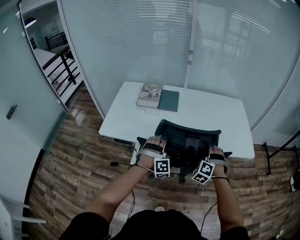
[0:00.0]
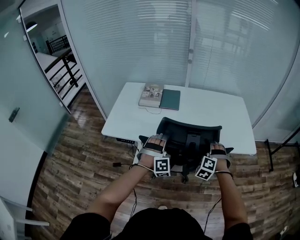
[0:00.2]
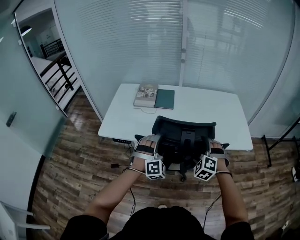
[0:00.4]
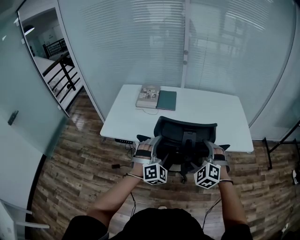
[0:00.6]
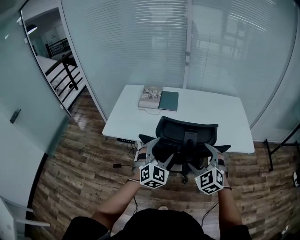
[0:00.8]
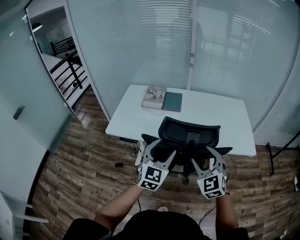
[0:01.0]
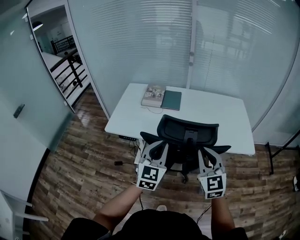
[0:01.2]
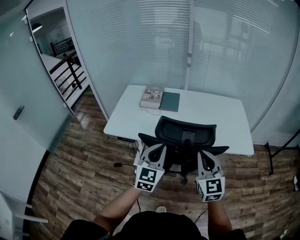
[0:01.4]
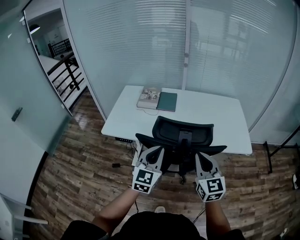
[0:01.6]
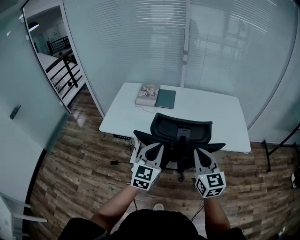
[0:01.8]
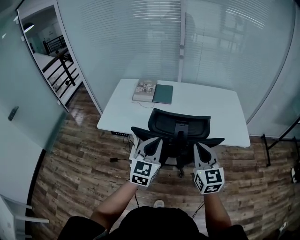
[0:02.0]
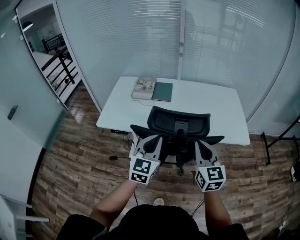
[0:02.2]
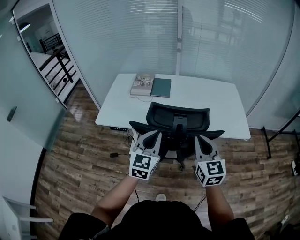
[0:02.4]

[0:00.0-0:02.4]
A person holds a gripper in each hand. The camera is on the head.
0:00.0 to 0:01.2: The grippers both shift upward and backward by roughly 20 cm. The right gripper points its fingers approximately 40 degrees further upward, and closes up. The left gripper twists approximately 70 degrees counterclockwise, seen from behind, and closes.
0:01.2 to 0:02.4: The grippers stay close to where they were, moving slightly.

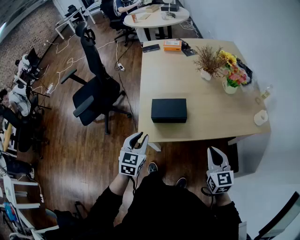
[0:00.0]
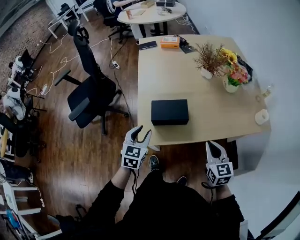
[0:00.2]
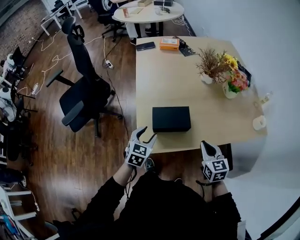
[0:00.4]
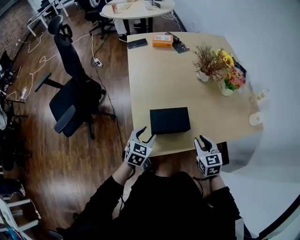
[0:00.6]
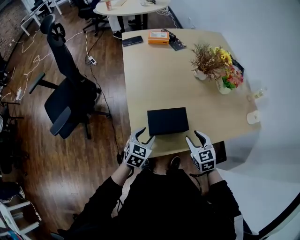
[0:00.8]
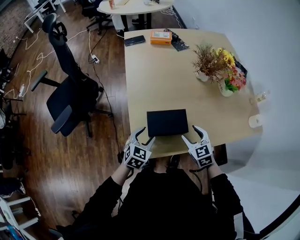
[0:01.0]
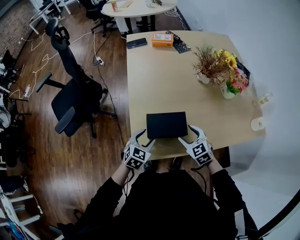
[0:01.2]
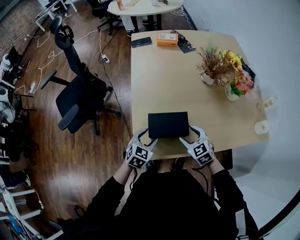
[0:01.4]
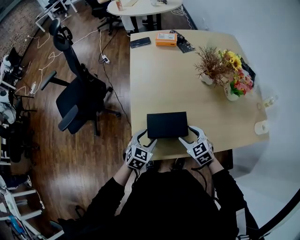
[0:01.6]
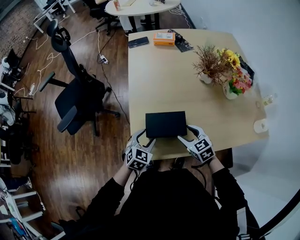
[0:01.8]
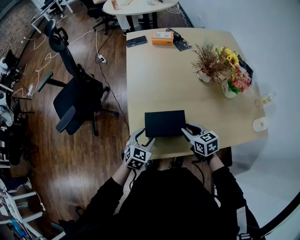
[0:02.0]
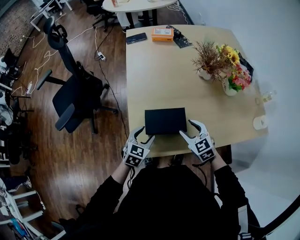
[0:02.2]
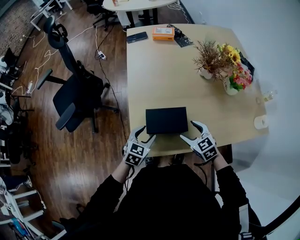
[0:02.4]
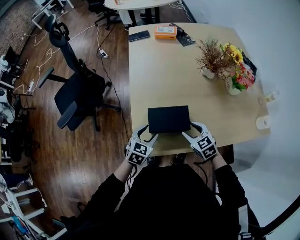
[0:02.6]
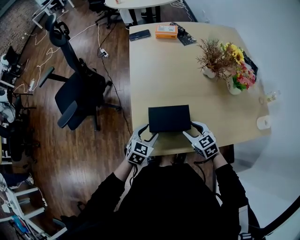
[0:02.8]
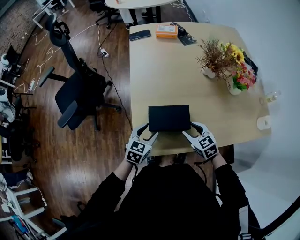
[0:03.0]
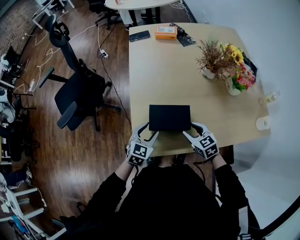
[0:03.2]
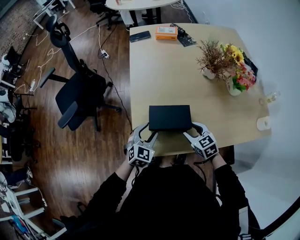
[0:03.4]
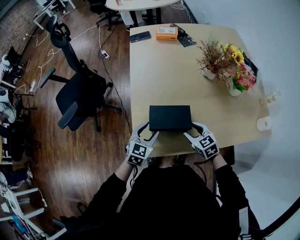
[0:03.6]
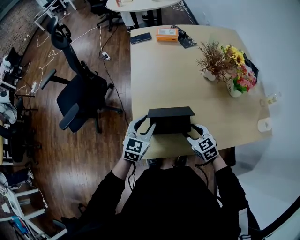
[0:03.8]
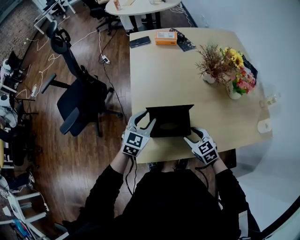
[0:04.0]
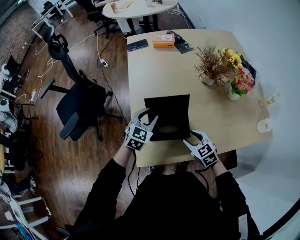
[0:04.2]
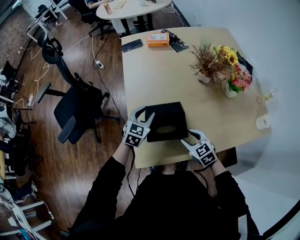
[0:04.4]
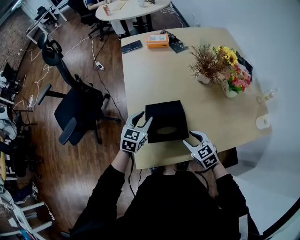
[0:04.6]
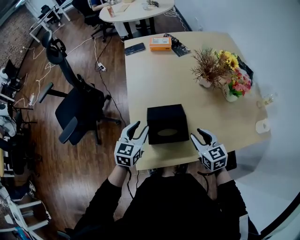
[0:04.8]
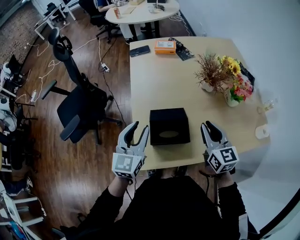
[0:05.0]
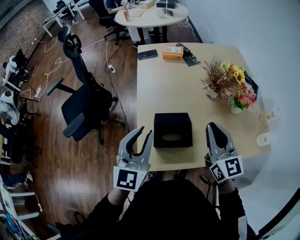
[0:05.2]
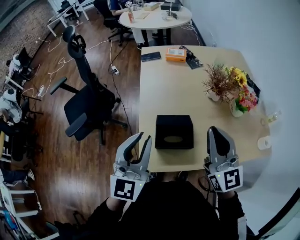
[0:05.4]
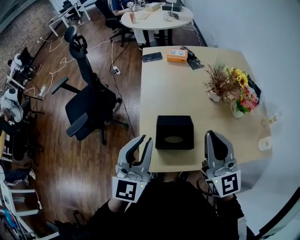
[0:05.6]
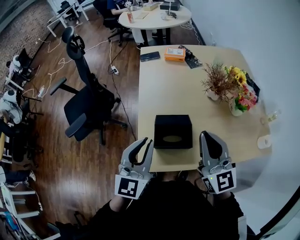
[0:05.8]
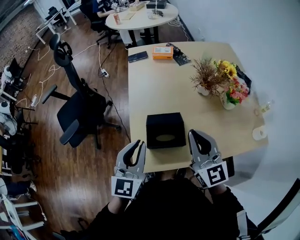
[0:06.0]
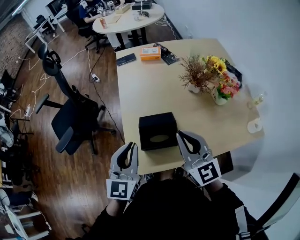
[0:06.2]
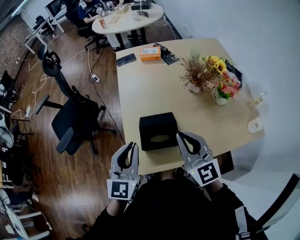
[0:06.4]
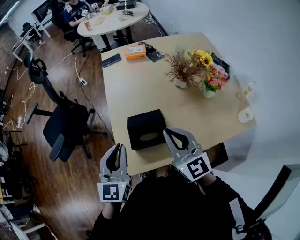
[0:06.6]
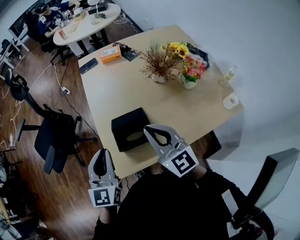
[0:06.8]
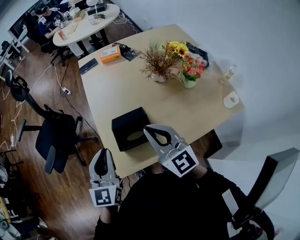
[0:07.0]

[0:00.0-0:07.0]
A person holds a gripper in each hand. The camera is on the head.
0:00.0 to 0:01.4: The right gripper heads forward, downward and to the left, covering some 30 cm, changes its angle by roughly 30 degrees, and opens; the left gripper heads forward and downward, covering some 20 cm, swivels approximately 20 degrees, and opens its fingers.
0:01.4 to 0:02.8: The right gripper closes, then opens again.
0:02.8 to 0:04.2: The left gripper goes roughly 15 cm forward and upward.
0:04.2 to 0:05.6: The right gripper shifts about 35 cm upward, tips its fingers upward by approximately 50 degrees, and closes. Meanwhile the left gripper shifts approximately 25 cm upward and backward, tips its fingers upward by about 30 degrees, and closes.
0:05.6 to 0:07.0: The grippers both shift downward by some 10 cm.

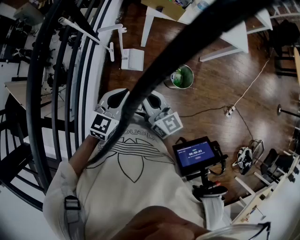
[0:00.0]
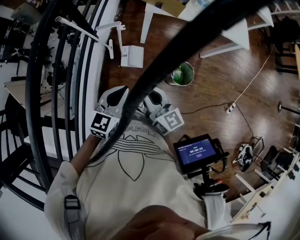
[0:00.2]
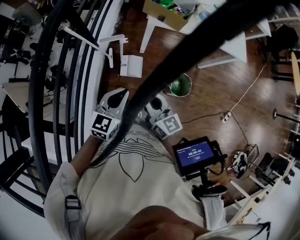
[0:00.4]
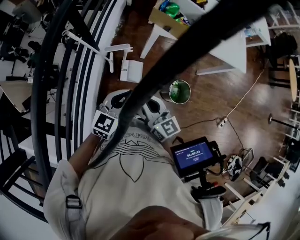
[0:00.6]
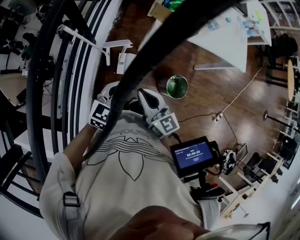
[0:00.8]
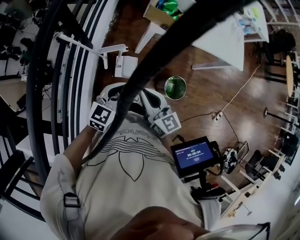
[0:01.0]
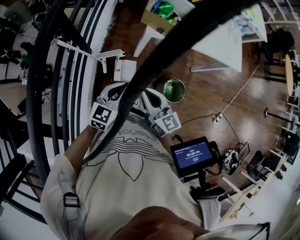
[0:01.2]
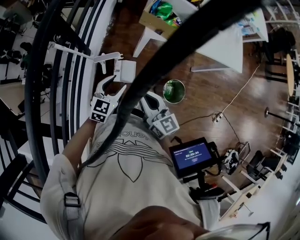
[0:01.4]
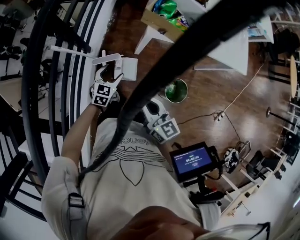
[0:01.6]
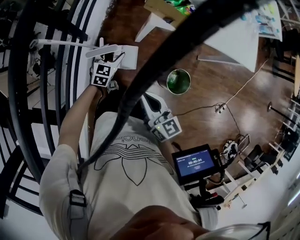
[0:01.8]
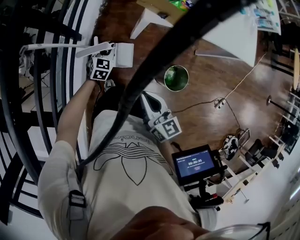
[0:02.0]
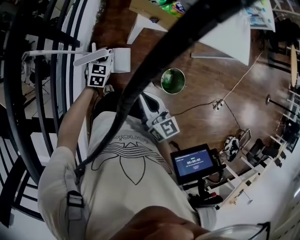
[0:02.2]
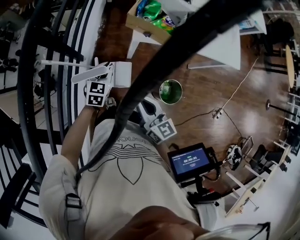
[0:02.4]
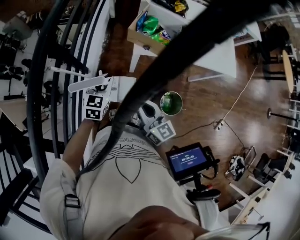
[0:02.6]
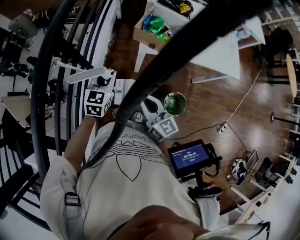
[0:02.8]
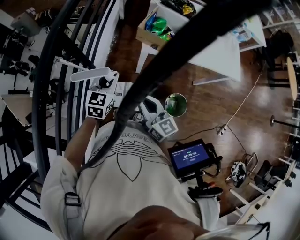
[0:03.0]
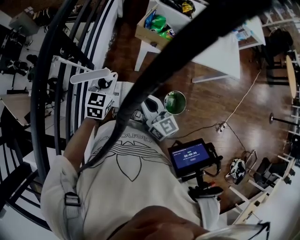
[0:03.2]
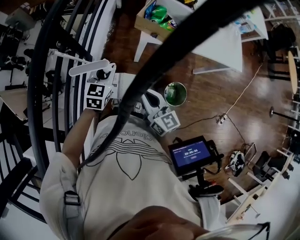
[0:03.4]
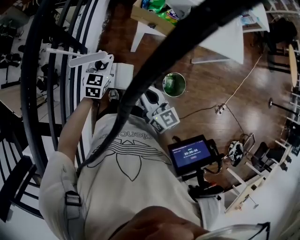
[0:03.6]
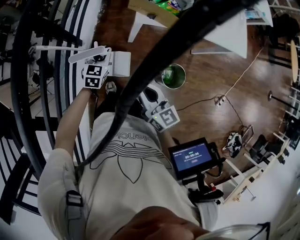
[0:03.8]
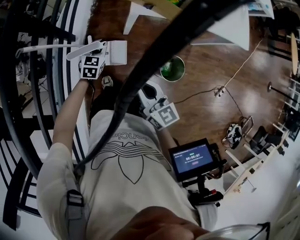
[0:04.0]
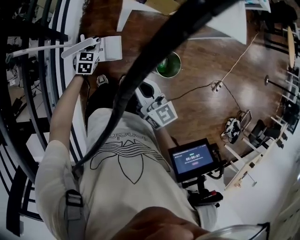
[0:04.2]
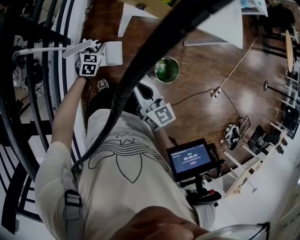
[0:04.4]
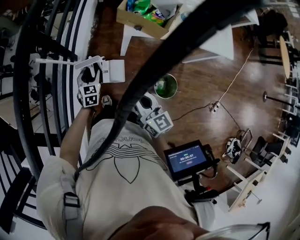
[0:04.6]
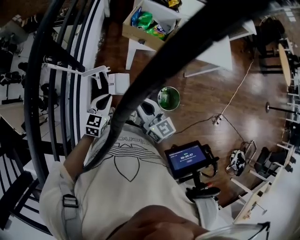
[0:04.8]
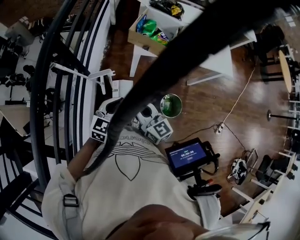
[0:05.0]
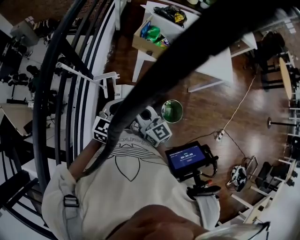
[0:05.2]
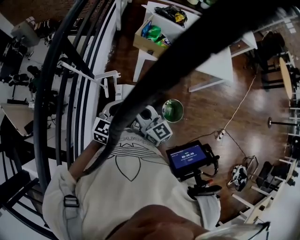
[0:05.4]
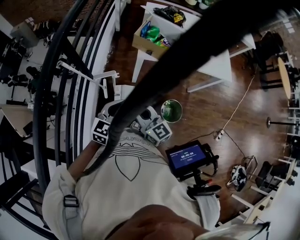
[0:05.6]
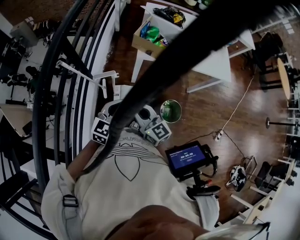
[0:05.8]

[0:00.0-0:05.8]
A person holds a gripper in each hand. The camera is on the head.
0:00.0 to 0:01.4: The right gripper shifts approximately 15 cm forward, while the left gripper goes some 25 cm forward and downward, and opens its fingers.
0:01.4 to 0:02.8: The left gripper is displaced forward by approximately 10 cm, goes downward and returns, approximately 15 cm each way, and closes its fingers, while the right gripper moves about 10 cm downward and comes back.
0:02.8 to 0:04.4: The left gripper travels downward by roughly 25 cm, and opens up, while the right gripper goes roughly 5 cm downward.
0:04.4 to 0:05.8: The right gripper goes up and down, about 5 cm each way, reversing 2 times. Meanwhile the left gripper travels upward and backward by roughly 30 cm, turns by some 30 degrees, and closes.

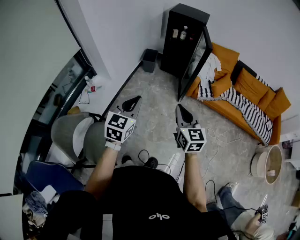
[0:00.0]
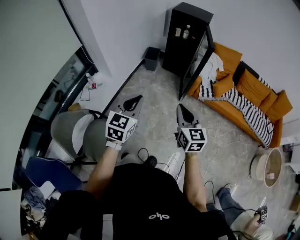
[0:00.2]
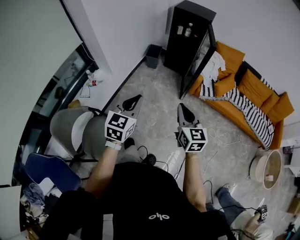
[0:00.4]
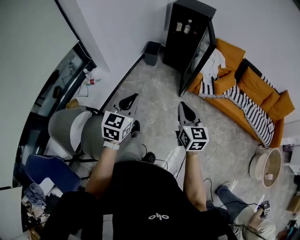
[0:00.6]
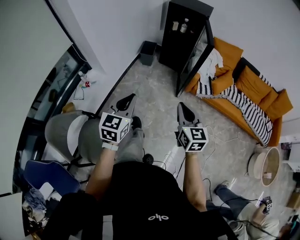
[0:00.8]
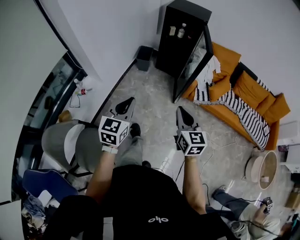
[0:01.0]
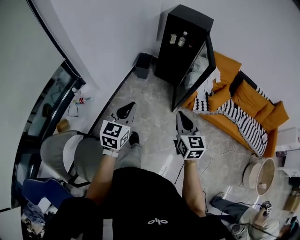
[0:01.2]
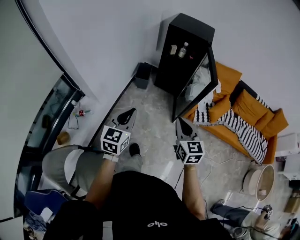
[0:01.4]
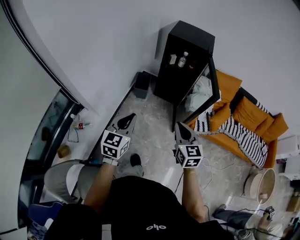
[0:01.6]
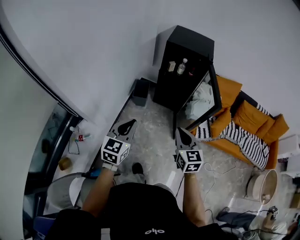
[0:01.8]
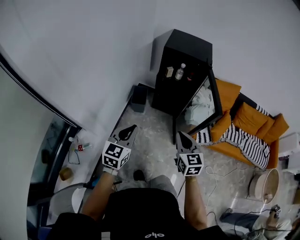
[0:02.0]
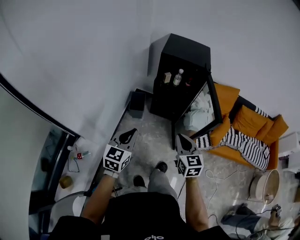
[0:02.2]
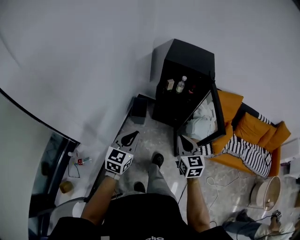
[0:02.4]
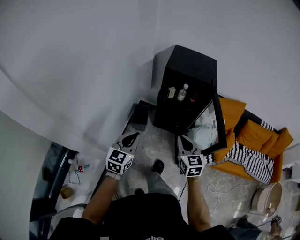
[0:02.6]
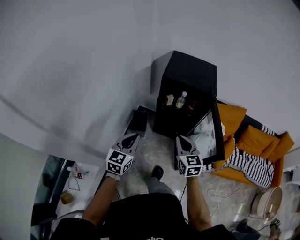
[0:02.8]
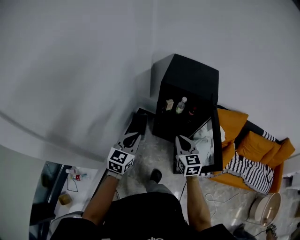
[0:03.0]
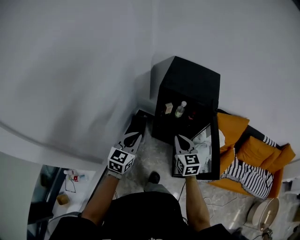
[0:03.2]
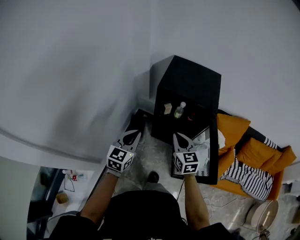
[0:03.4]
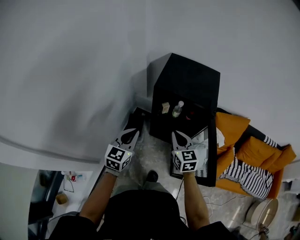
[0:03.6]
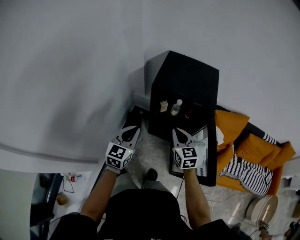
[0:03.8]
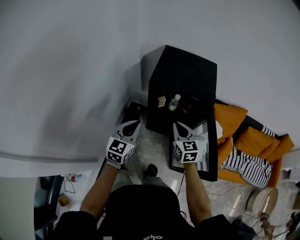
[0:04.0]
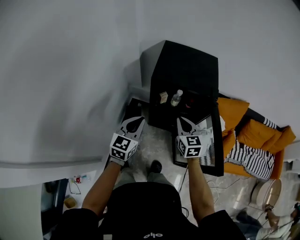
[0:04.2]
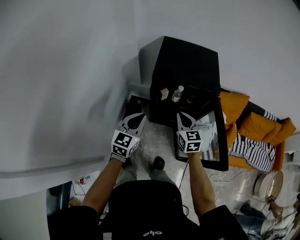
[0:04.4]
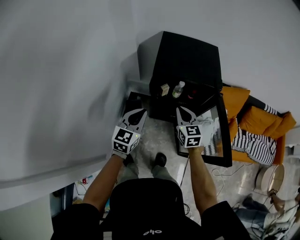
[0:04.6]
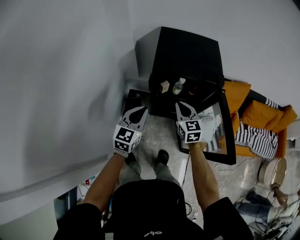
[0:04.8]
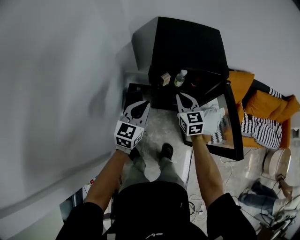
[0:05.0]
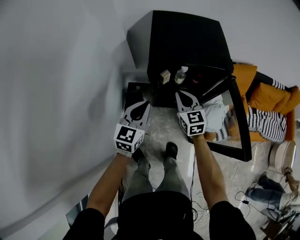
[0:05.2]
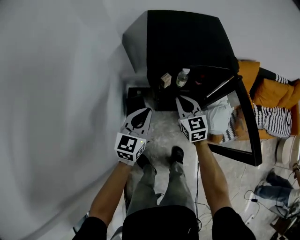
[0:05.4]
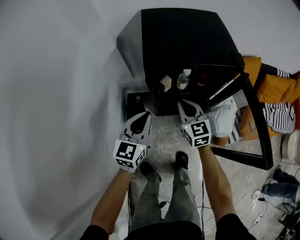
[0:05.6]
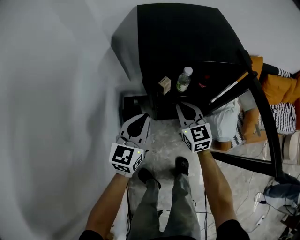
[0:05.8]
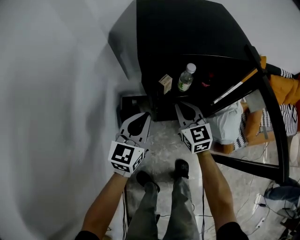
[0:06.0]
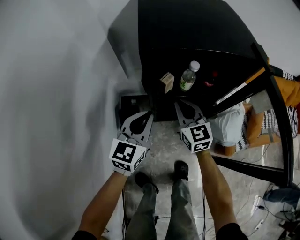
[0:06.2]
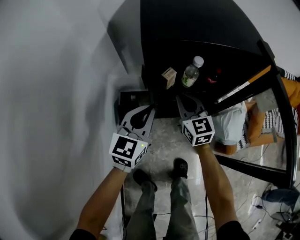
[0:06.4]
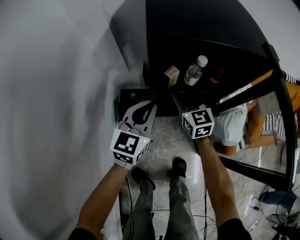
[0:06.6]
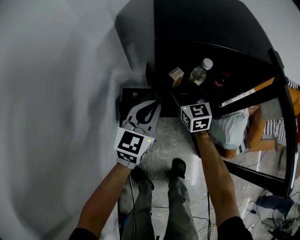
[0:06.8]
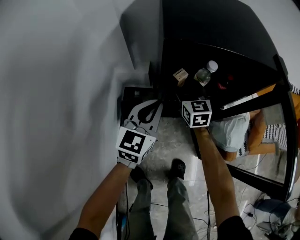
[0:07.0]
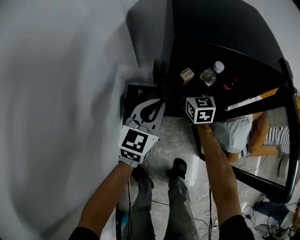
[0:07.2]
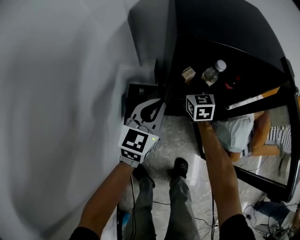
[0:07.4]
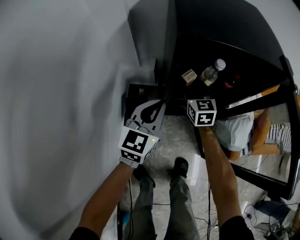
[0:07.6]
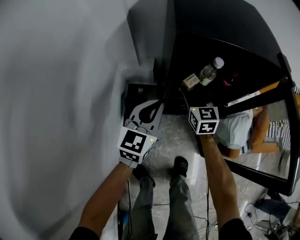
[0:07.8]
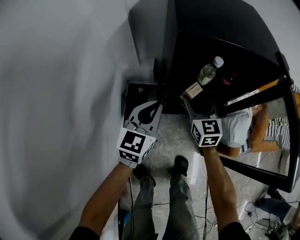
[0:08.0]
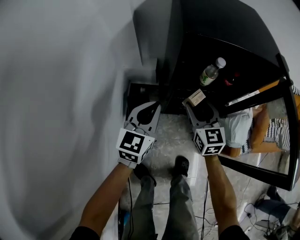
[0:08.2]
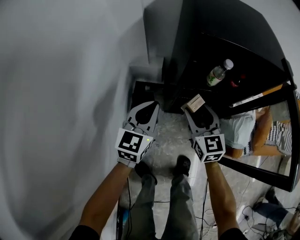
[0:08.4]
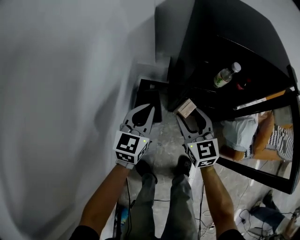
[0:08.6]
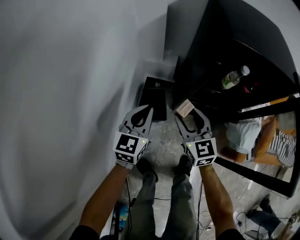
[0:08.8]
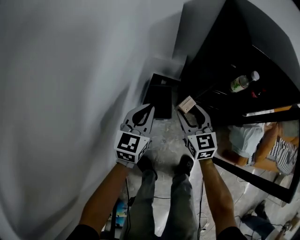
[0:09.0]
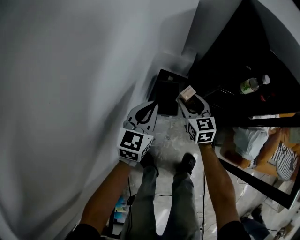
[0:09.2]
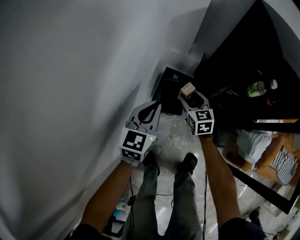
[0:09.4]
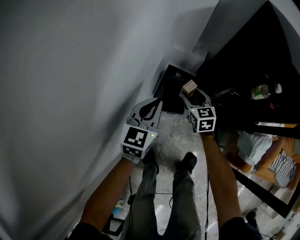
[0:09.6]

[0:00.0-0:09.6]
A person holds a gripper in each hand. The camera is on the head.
0:00.0 to 0:01.6: Both grippers move forward, about 35 cm.
0:01.6 to 0:03.2: The pair of grippers is taken forward, some 40 cm.
0:03.2 to 0:04.8: The left gripper shifts some 15 cm forward. The right gripper shifts some 15 cm forward and downward.
0:04.8 to 0:06.4: Both grippers move downward and forward, approximately 25 cm.
0:06.4 to 0:08.0: The right gripper moves roughly 10 cm forward and comes back, and opens its fingers.
0:08.0 to 0:09.6: The right gripper goes some 30 cm to the left and downward, and changes its angle by some 30 degrees. The left gripper goes some 25 cm to the left, and changes its angle by about 20 degrees.
